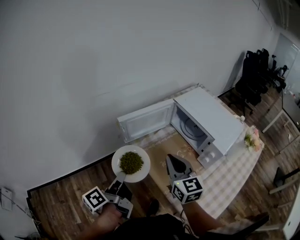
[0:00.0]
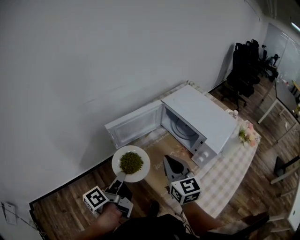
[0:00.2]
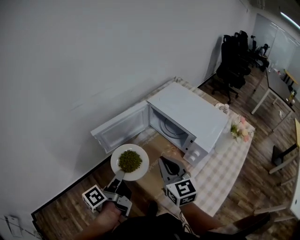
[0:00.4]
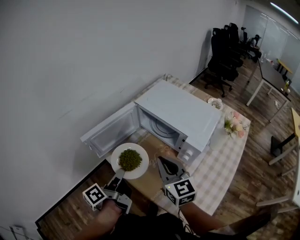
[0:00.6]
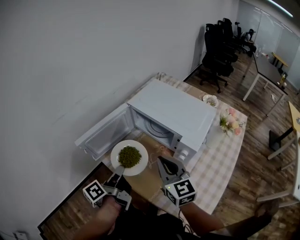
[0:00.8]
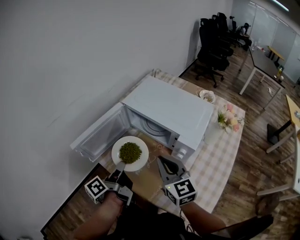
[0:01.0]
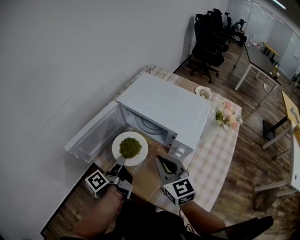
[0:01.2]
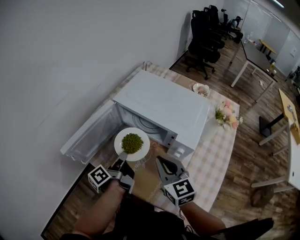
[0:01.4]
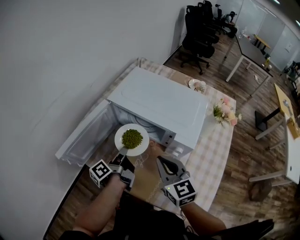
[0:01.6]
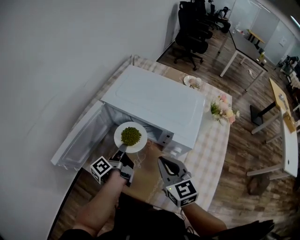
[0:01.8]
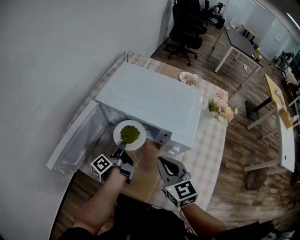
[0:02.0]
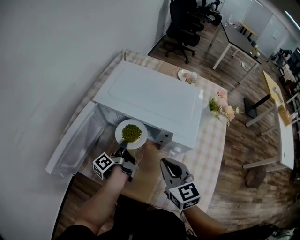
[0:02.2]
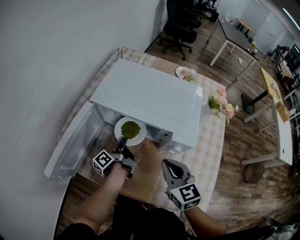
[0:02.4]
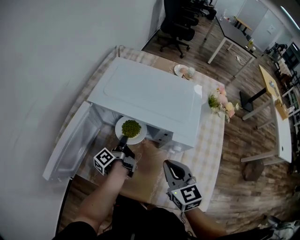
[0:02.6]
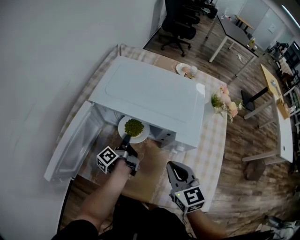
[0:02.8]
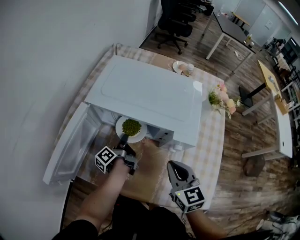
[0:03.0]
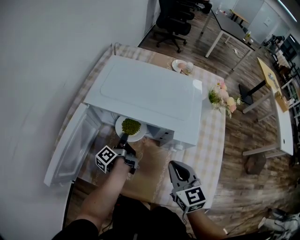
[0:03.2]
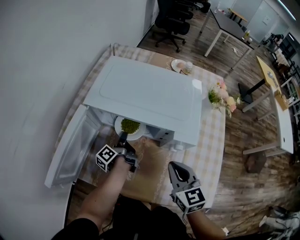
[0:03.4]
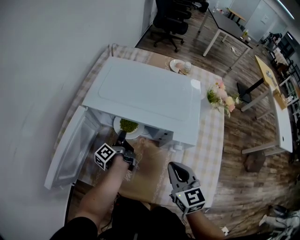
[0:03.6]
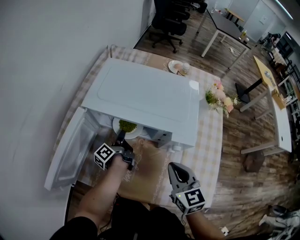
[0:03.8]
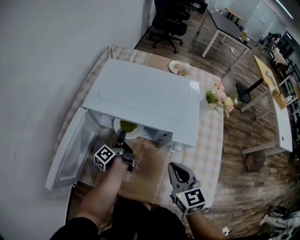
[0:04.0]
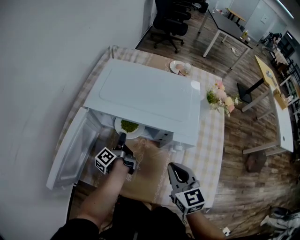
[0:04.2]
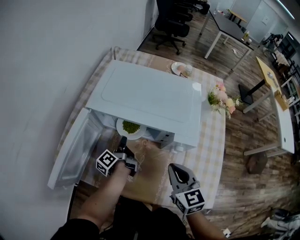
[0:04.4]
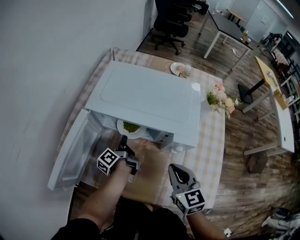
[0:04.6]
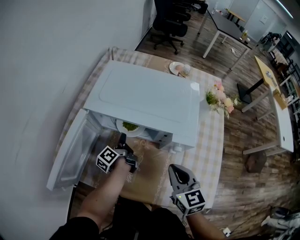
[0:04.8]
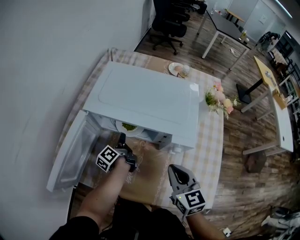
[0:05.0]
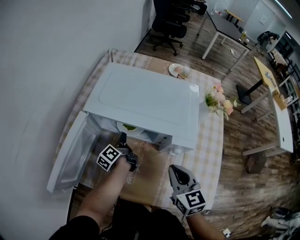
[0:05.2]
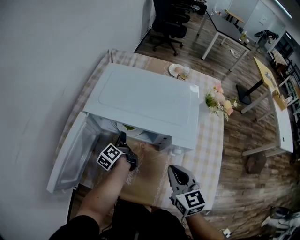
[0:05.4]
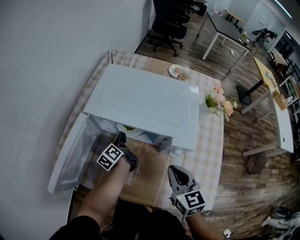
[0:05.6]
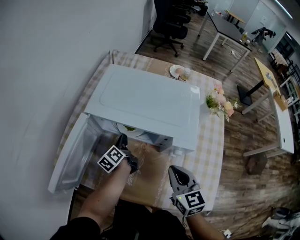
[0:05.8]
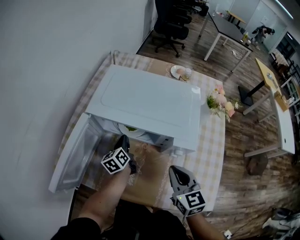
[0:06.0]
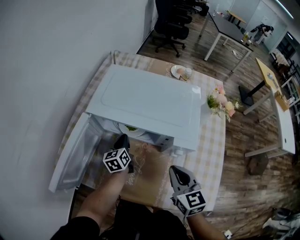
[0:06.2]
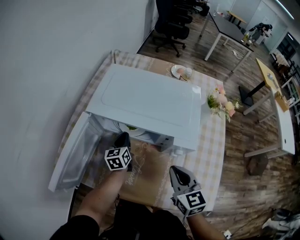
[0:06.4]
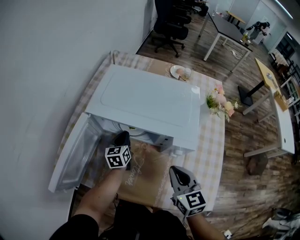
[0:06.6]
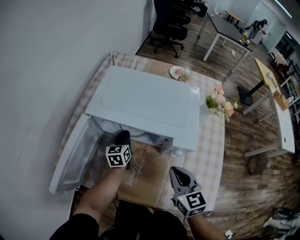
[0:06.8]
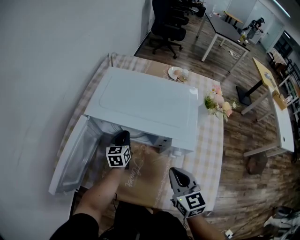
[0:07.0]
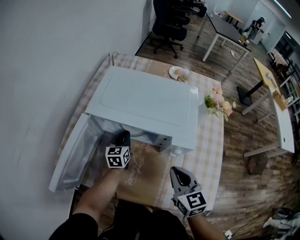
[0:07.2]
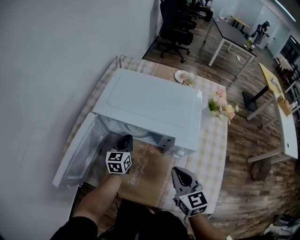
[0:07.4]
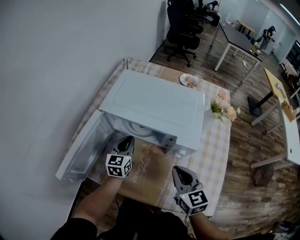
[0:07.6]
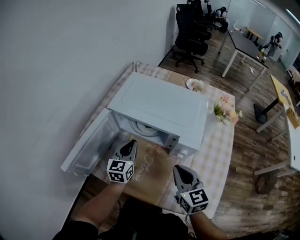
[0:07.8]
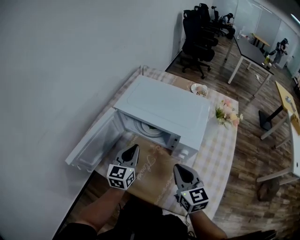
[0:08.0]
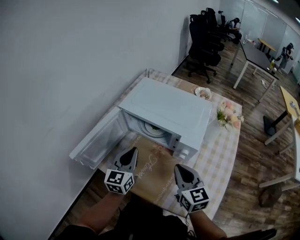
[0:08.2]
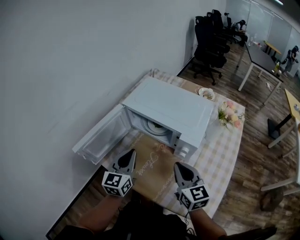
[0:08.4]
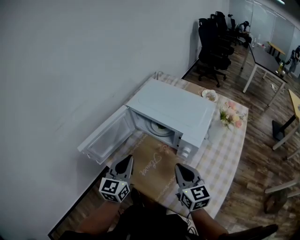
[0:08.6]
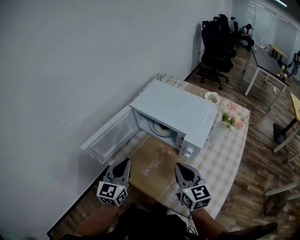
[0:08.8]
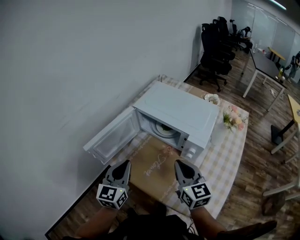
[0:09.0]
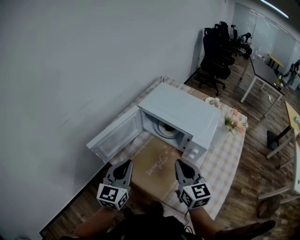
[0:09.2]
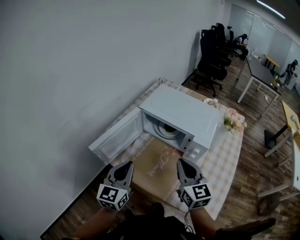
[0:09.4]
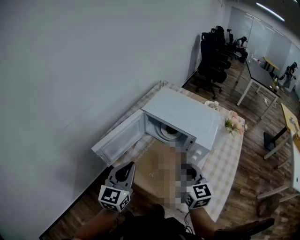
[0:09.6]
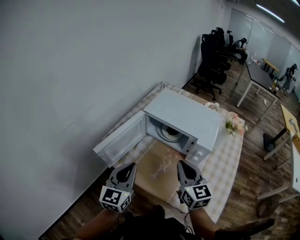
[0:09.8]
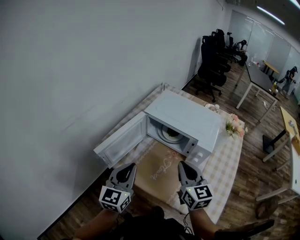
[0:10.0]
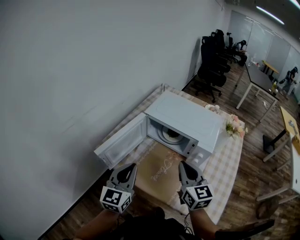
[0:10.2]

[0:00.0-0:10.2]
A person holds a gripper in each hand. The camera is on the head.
0.0 to 1.4 s: The left gripper goes roughly 30 cm forward and to the right, and changes its angle by approximately 20 degrees. Meanwhile the right gripper travels to the right, forward and downward by approximately 15 cm.
1.4 to 3.0 s: The right gripper moves to the right and downward, some 10 cm, and turns by approximately 20 degrees, while the left gripper goes roughly 20 cm downward and forward.
3.0 to 4.4 s: The left gripper opens and closes again.
4.4 to 5.8 s: The left gripper rotates roughly 20 degrees.
5.8 to 7.2 s: The left gripper rotates around the line of its fingers by roughly 50 degrees, clockwise from behind.
7.2 to 8.8 s: The right gripper goes approximately 5 cm upward, and changes its angle by about 20 degrees, while the left gripper is displaced backward and upward by approximately 35 cm, and swivels roughly 20 degrees.
8.8 to 10.2 s: The right gripper travels to the left and upward by approximately 10 cm, while the left gripper goes about 5 cm to the left.

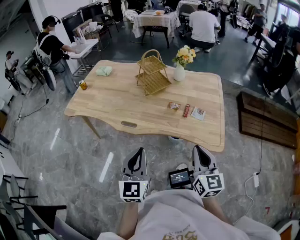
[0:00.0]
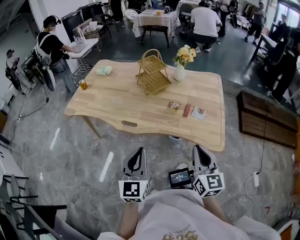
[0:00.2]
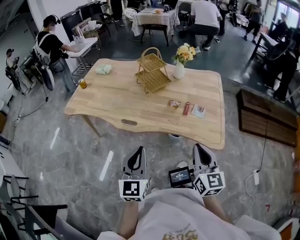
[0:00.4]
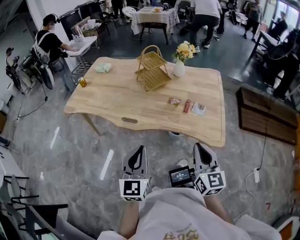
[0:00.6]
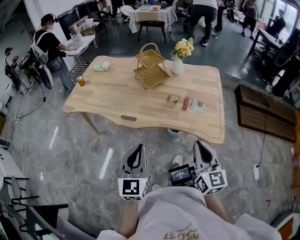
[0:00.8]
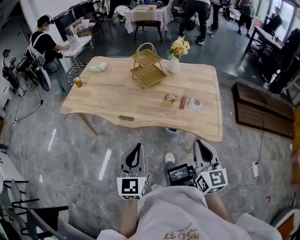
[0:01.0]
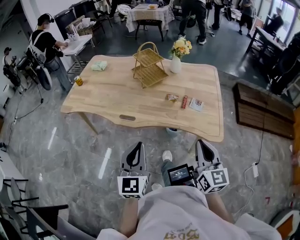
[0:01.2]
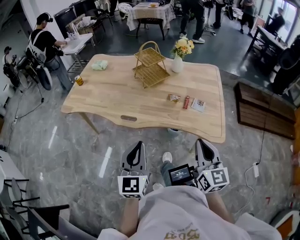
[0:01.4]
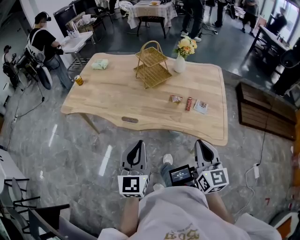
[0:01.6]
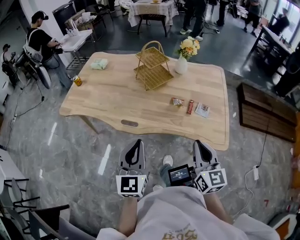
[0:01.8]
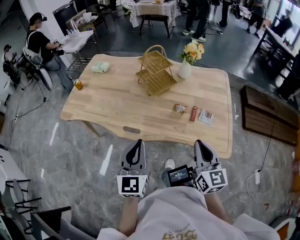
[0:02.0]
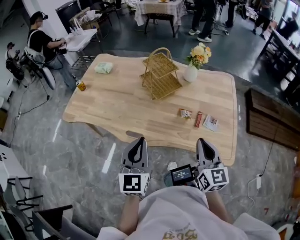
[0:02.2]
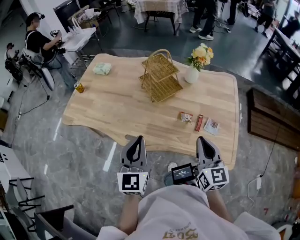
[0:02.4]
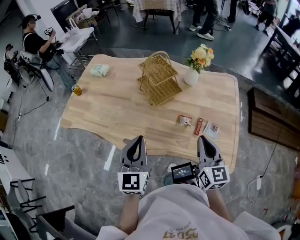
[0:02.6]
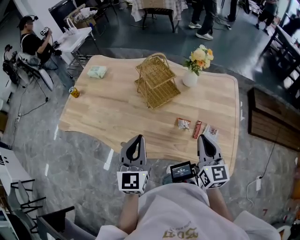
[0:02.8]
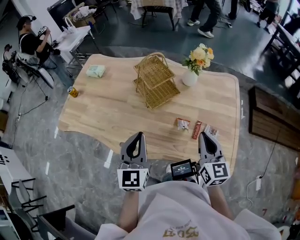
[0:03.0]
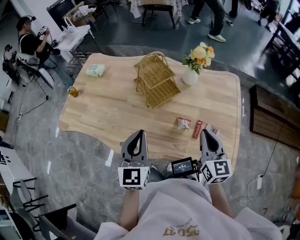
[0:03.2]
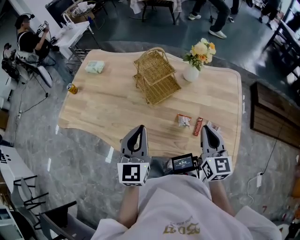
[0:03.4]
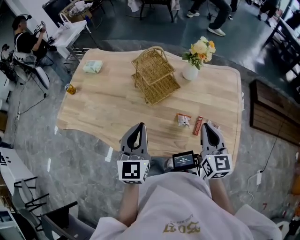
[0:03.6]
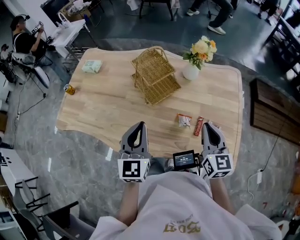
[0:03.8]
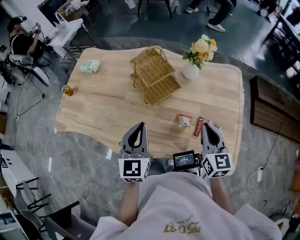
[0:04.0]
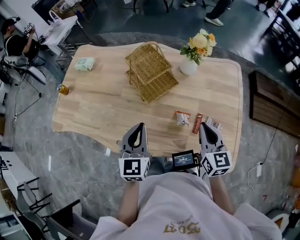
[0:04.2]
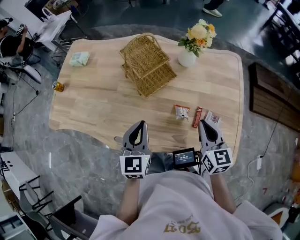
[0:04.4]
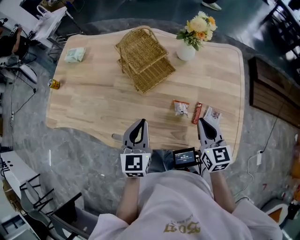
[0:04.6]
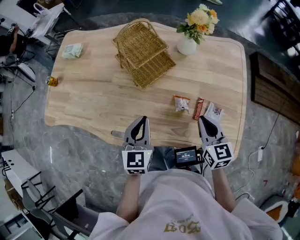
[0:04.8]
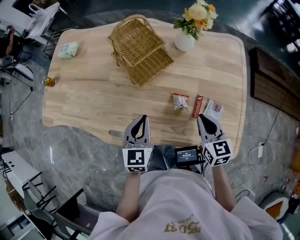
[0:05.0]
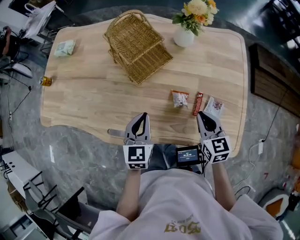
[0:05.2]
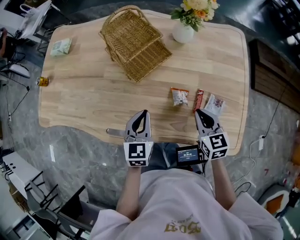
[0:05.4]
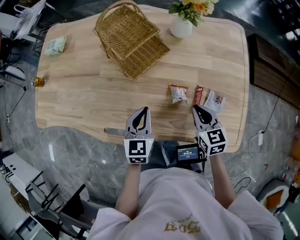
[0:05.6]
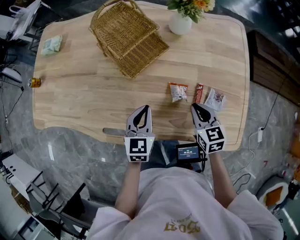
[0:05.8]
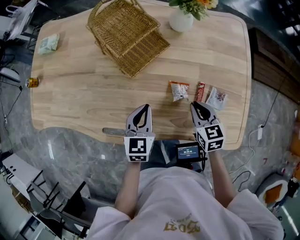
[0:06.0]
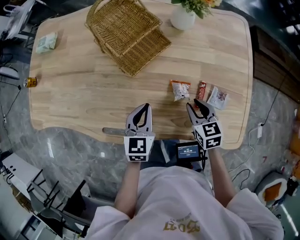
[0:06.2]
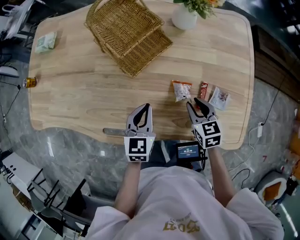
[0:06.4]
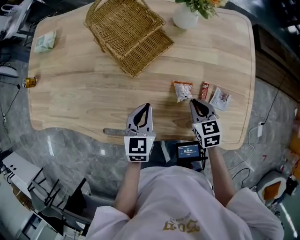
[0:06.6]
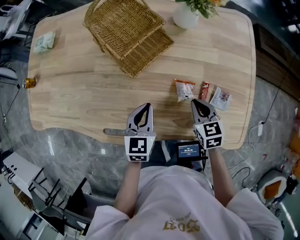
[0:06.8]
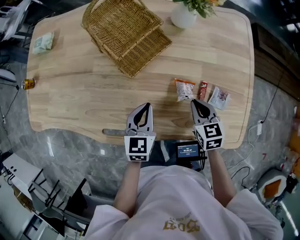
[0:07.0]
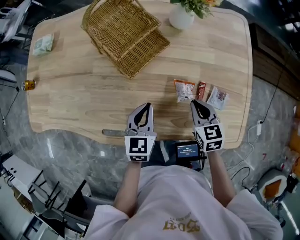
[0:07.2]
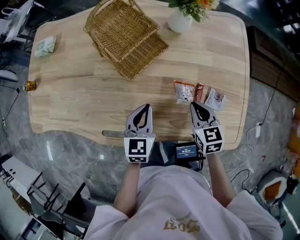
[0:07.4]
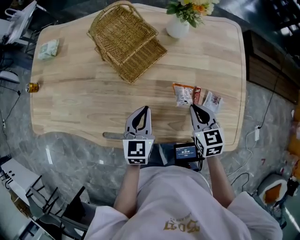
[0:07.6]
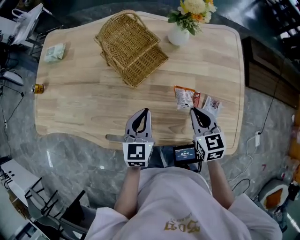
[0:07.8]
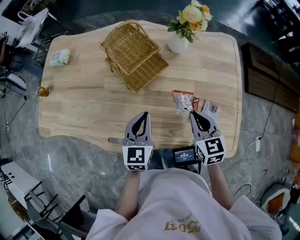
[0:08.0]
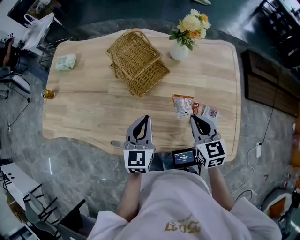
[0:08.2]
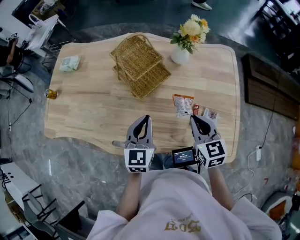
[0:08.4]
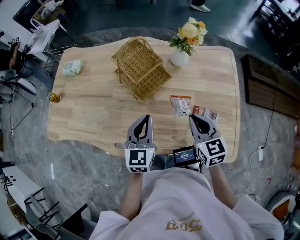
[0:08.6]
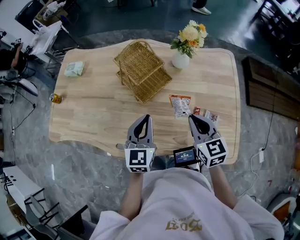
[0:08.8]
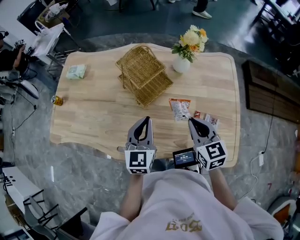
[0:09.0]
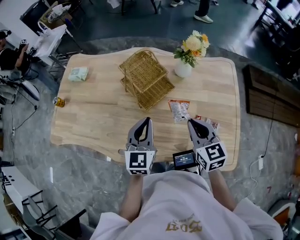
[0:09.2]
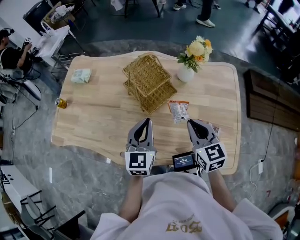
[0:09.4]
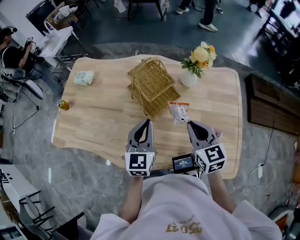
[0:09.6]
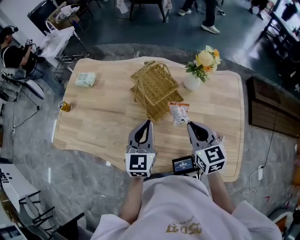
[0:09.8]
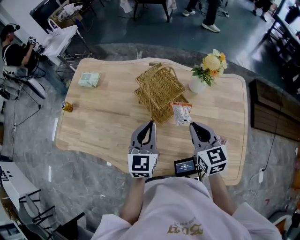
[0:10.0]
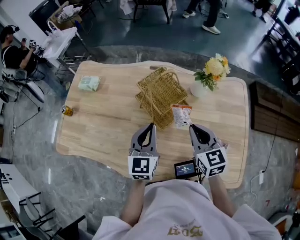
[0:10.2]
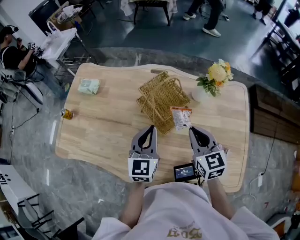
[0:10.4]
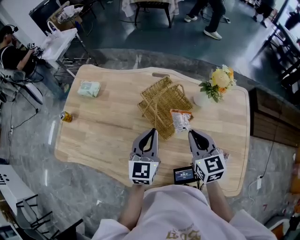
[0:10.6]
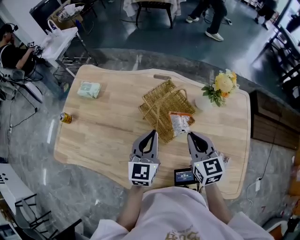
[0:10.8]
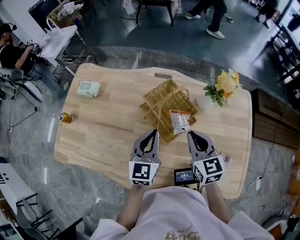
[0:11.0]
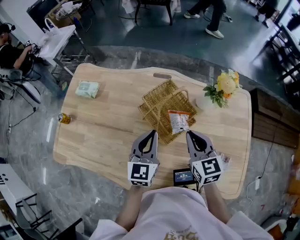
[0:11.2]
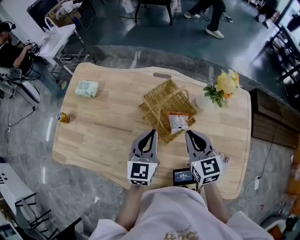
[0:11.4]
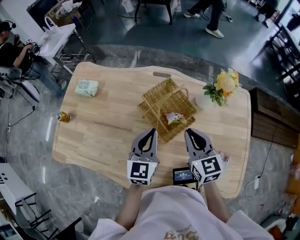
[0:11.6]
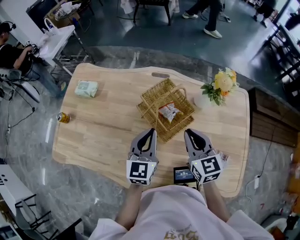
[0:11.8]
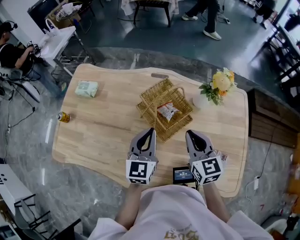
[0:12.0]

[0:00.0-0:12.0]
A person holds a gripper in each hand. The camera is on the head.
0.0 to 1.6 s: The grippers make only small movements.
1.6 to 3.0 s: Both grippers move forward, about 30 cm.
3.0 to 4.4 s: The left gripper heads downward and forward, covering roughly 10 cm, while the right gripper heads downward, covering some 5 cm.
4.4 to 6.0 s: Both grippers move downward, some 15 cm. The right gripper rotates roughly 20 degrees.
6.0 to 7.6 s: The right gripper opens, then closes again.
7.6 to 9.0 s: Both grippers travel together upward, roughly 15 cm.
9.0 to 10.4 s: Both grippers travel together forward and to the left, some 15 cm.
10.4 to 12.0 s: The grippers stay close to where they were, moving slightly.

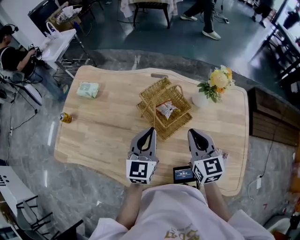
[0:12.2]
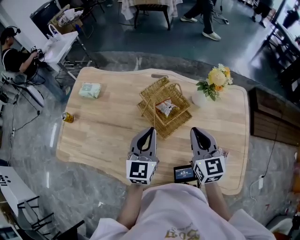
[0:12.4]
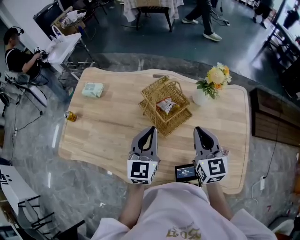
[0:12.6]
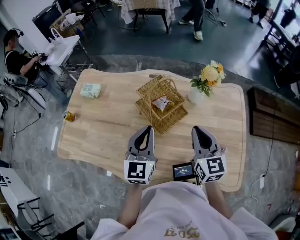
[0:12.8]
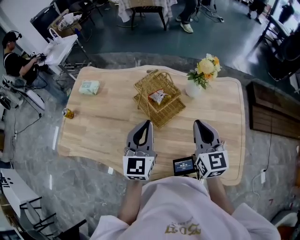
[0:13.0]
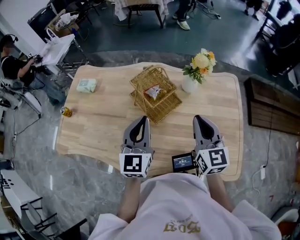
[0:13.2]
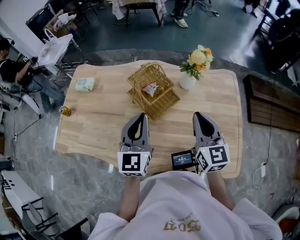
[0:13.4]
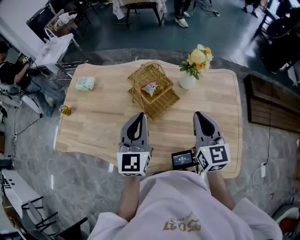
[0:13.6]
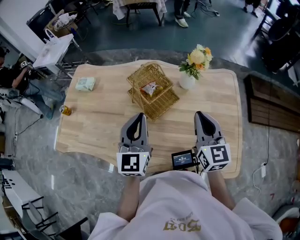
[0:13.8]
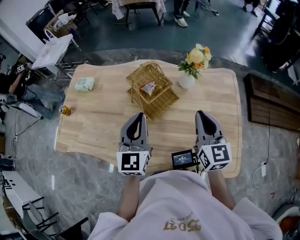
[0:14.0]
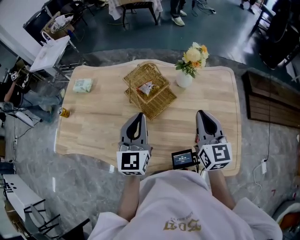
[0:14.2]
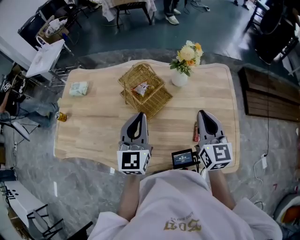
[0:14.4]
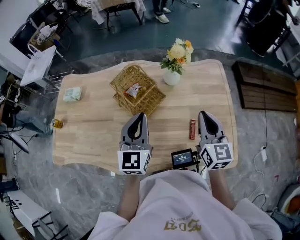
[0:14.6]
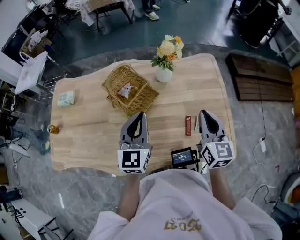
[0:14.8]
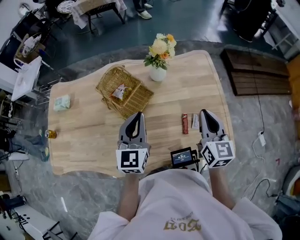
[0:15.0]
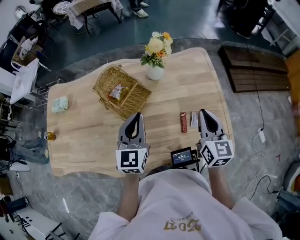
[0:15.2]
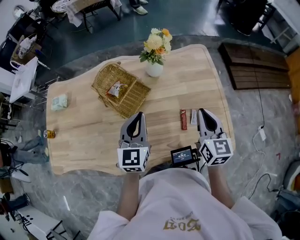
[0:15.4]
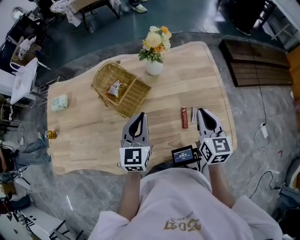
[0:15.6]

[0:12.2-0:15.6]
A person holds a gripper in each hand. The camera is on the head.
12.2 to 13.8 s: The left gripper travels upward and backward by approximately 10 cm. Meanwhile the right gripper shifts approximately 15 cm to the right, backward and upward.
13.8 to 15.6 s: Both grippers move to the right and downward, roughly 15 cm. The left gripper swivels some 20 degrees. Meanwhile the right gripper changes its angle by approximately 20 degrees.
